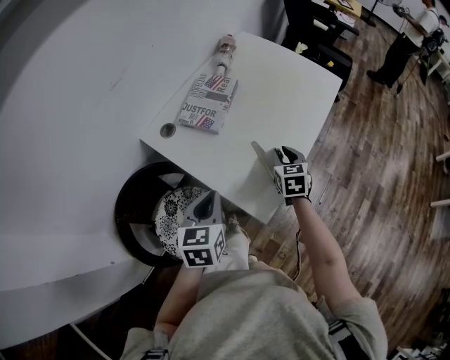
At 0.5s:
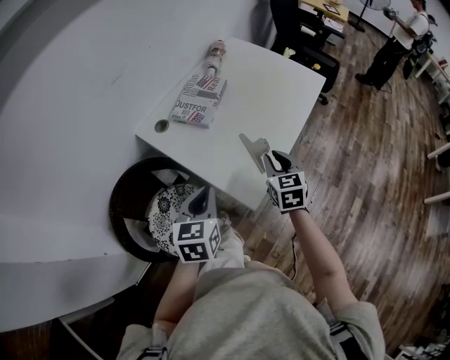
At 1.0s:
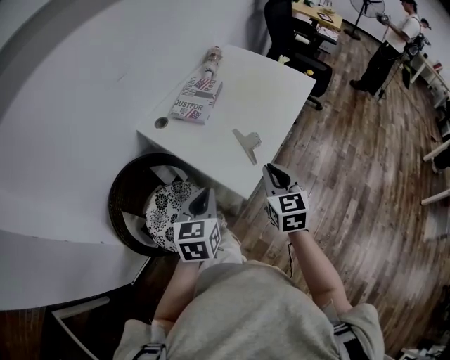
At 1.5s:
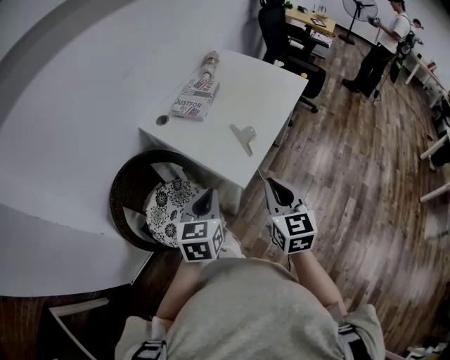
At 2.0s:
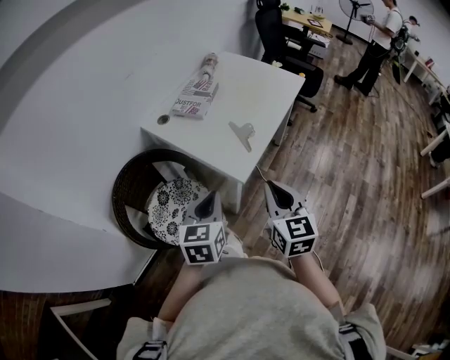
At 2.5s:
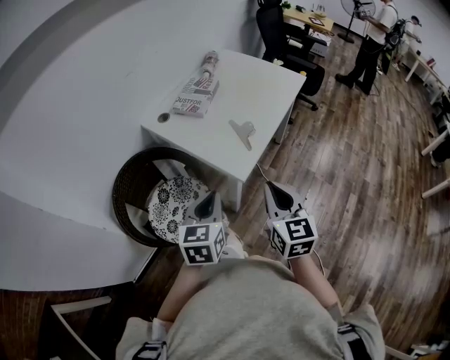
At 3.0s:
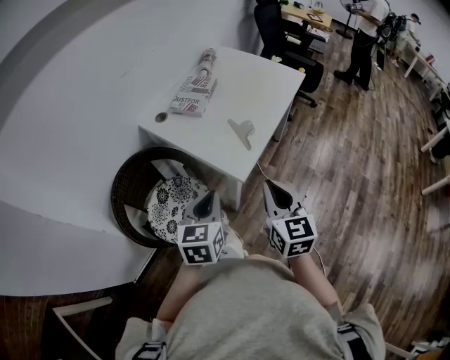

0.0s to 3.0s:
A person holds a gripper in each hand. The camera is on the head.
0.0s to 1.5s: The right gripper is displaced backward and upward by some 35 cm, rotates approximately 20 degrees, and closes; the left gripper goes about 20 cm backward.
1.5s to 3.0s: The grippers move only a little.

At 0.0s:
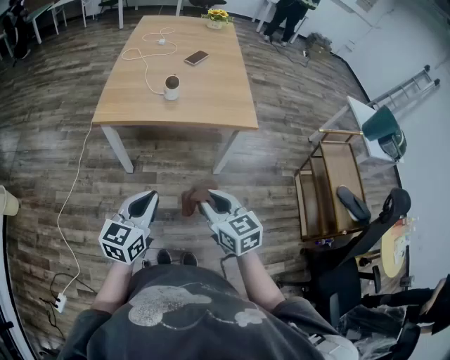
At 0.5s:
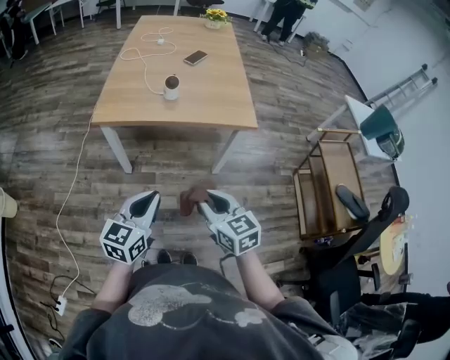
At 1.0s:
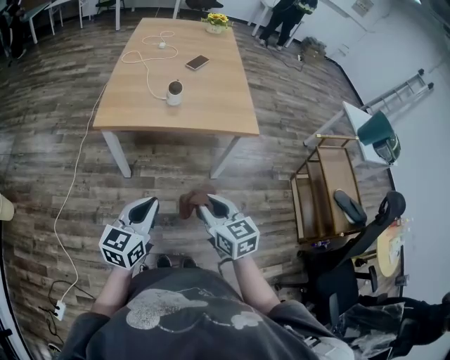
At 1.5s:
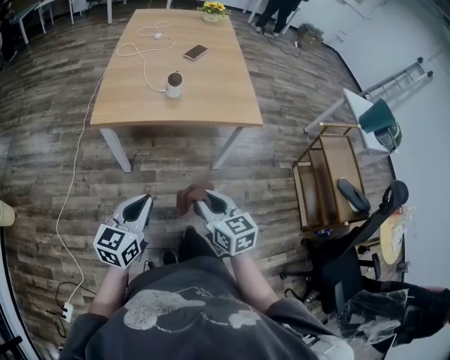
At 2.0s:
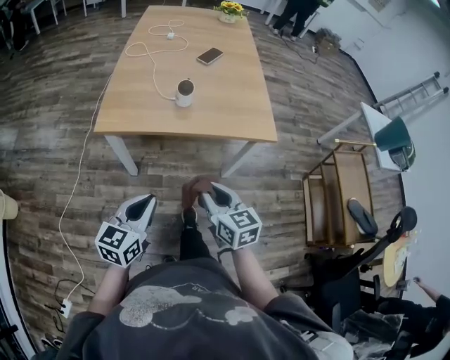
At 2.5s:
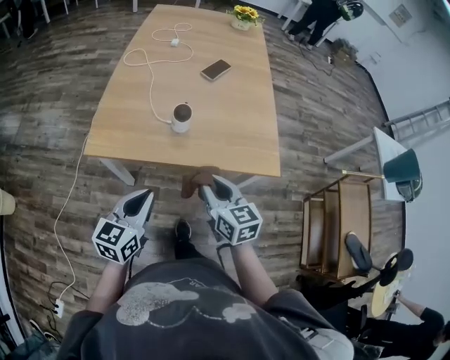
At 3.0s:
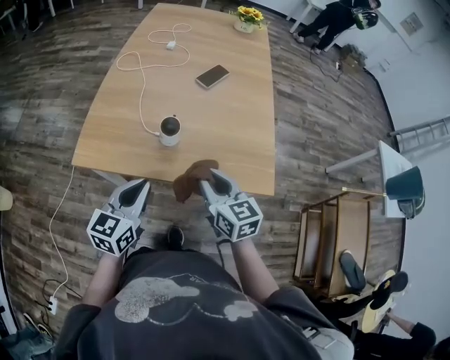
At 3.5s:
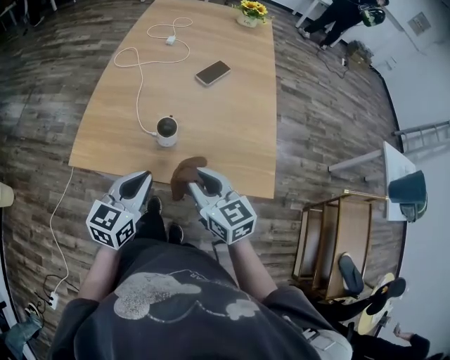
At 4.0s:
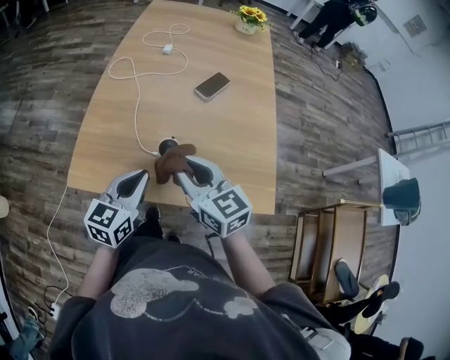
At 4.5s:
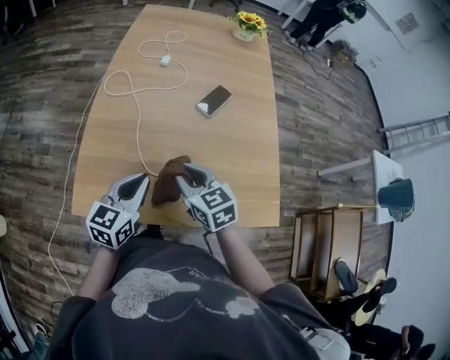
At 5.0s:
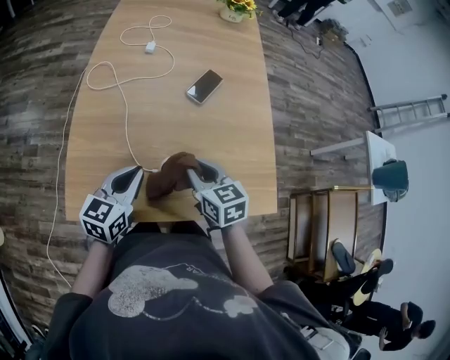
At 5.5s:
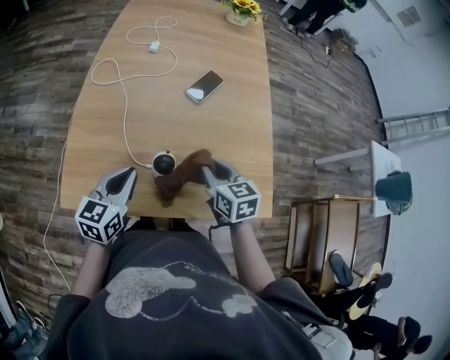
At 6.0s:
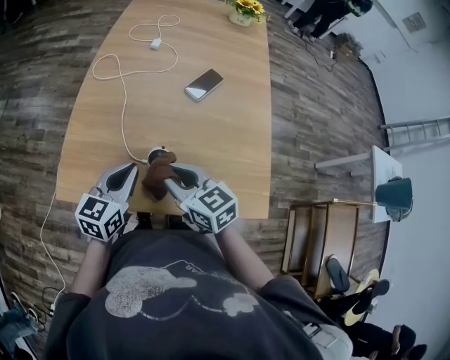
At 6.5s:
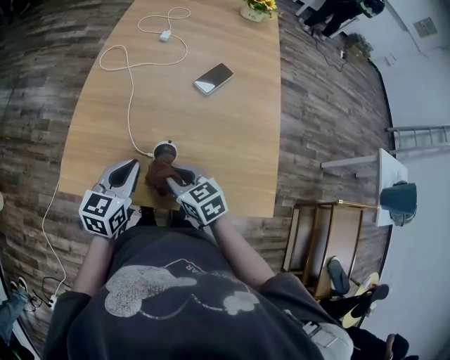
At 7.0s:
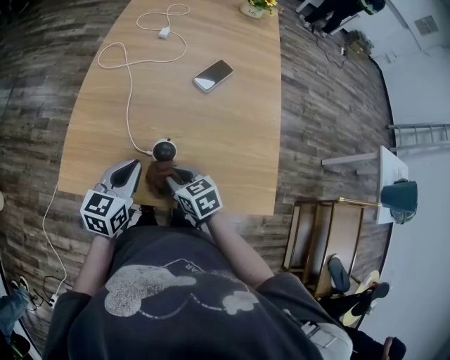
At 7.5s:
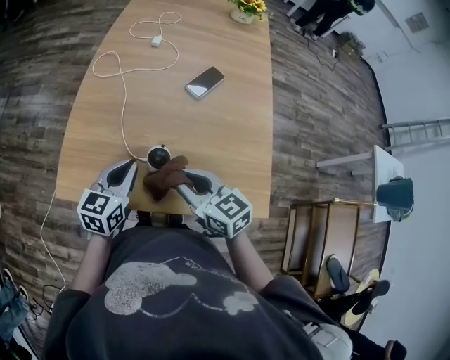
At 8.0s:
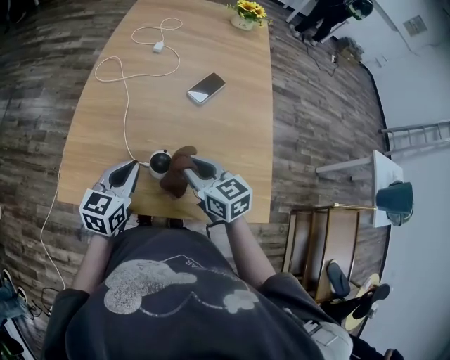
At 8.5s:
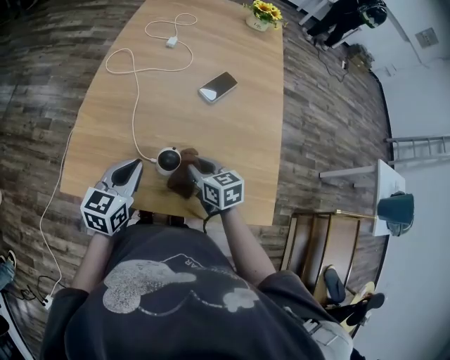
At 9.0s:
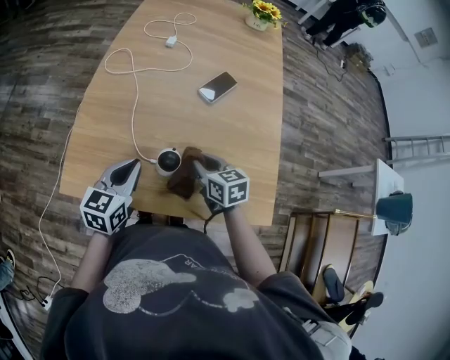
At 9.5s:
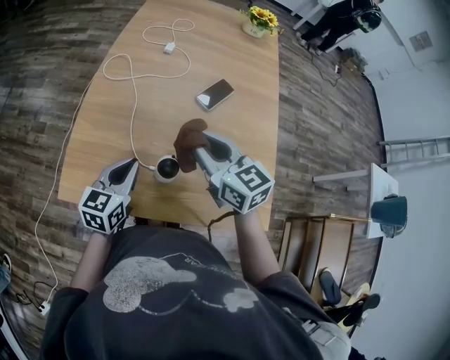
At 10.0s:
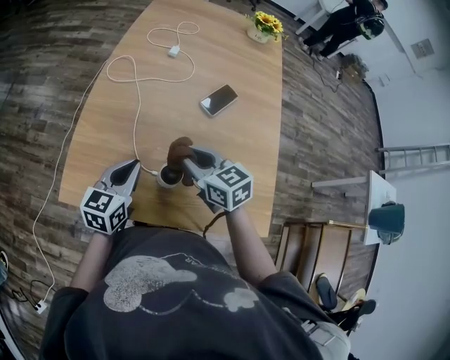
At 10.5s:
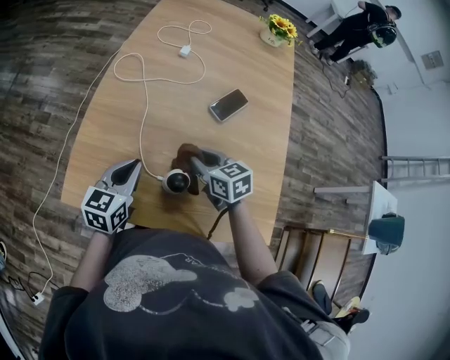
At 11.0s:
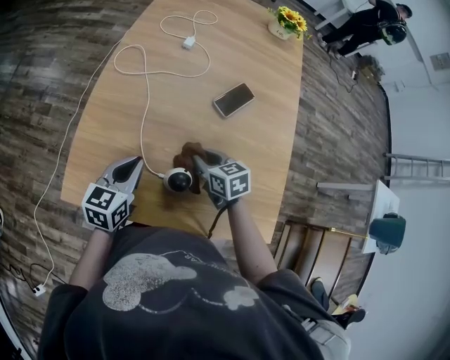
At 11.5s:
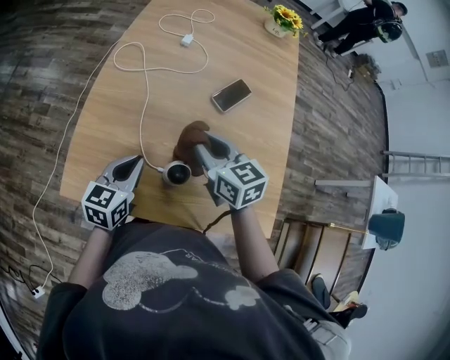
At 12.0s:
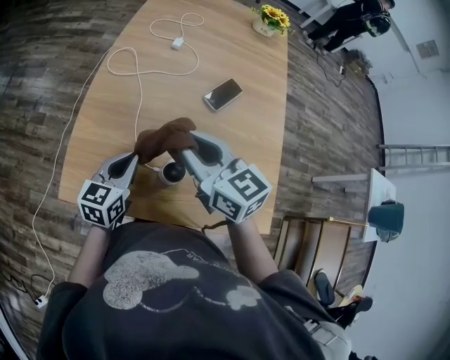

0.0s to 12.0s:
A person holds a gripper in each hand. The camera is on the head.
0.0s to 2.0s: The left gripper is displaced forward and to the left by some 10 cm. Meanwhile the right gripper moves forward, some 10 cm.
2.0s to 4.0s: The grippers both shift forward by about 30 cm. The right gripper turns by some 20 degrees.
4.0s to 6.0s: The right gripper moves downward, some 5 cm, and reaches some 10 cm to the right, then returns. The left gripper heads forward, covering about 5 cm.
6.0s to 8.0s: The right gripper travels to the right by about 5 cm, and reaches approximately 10 cm downward, then returns.
8.0s to 10.0s: The right gripper goes up and down, roughly 15 cm each way, reversing 2 times.
10.0s to 12.0s: The right gripper moves upward, approximately 10 cm.

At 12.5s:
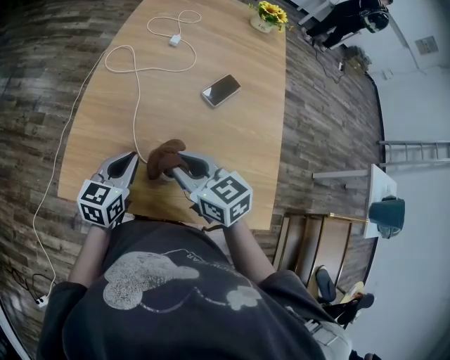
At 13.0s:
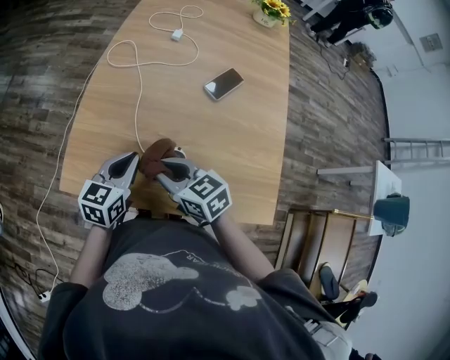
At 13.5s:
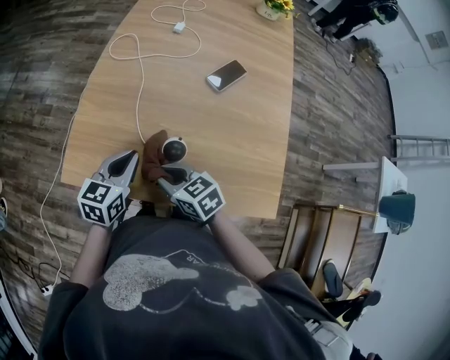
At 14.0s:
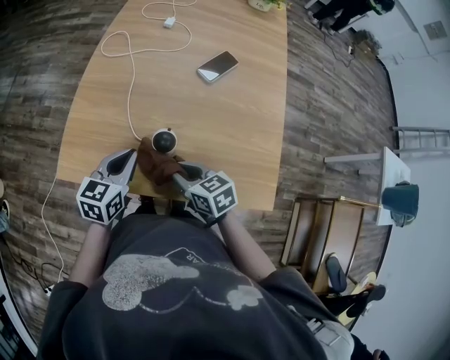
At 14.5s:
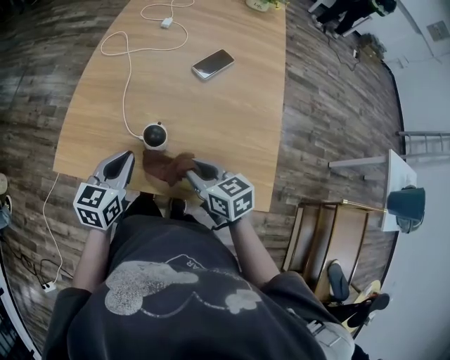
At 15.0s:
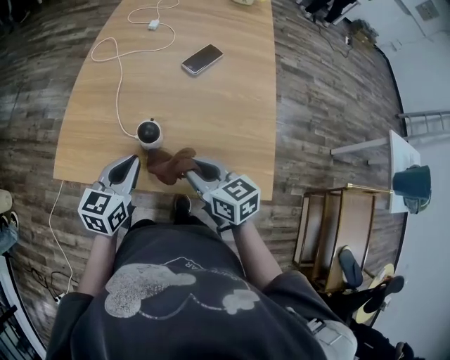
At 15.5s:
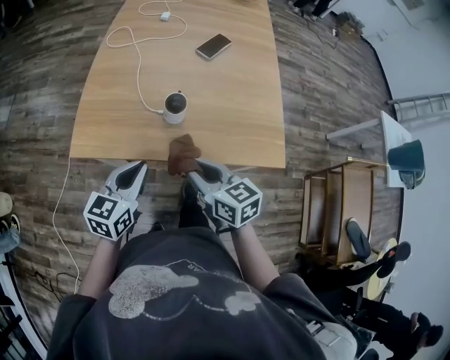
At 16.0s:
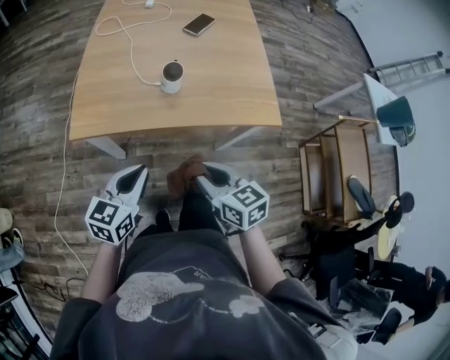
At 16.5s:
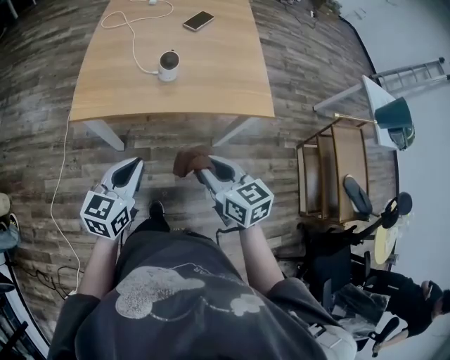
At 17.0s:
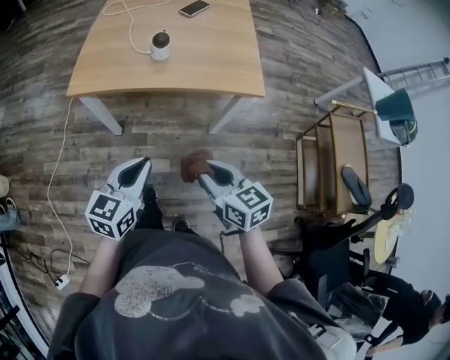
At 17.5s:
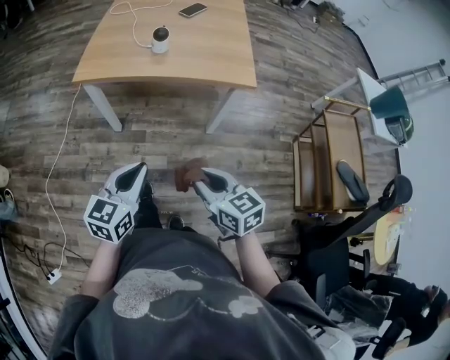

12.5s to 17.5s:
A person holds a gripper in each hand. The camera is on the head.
12.5s to 15.0s: The right gripper heads backward, to the right and downward, covering some 15 cm, while the left gripper travels backward by about 10 cm.
15.0s to 17.5s: The pair of grippers is taken backward, roughly 40 cm.

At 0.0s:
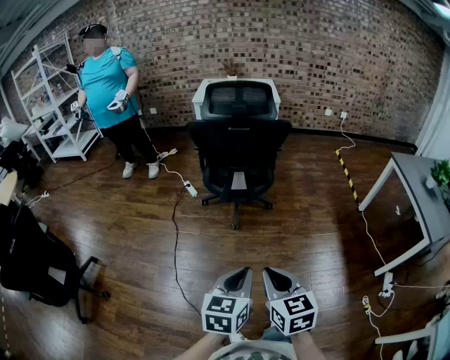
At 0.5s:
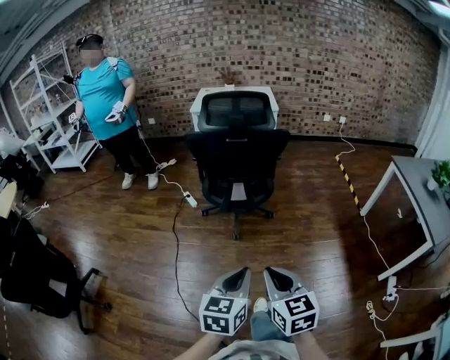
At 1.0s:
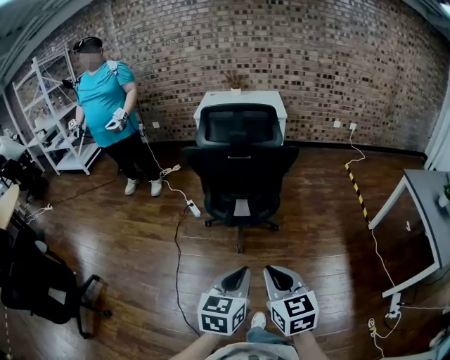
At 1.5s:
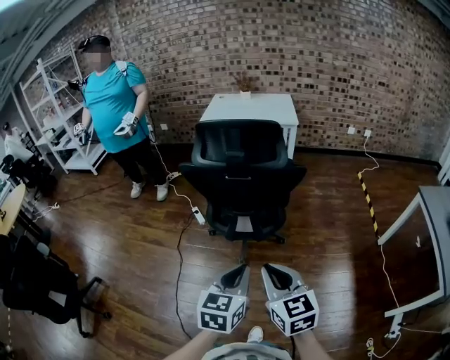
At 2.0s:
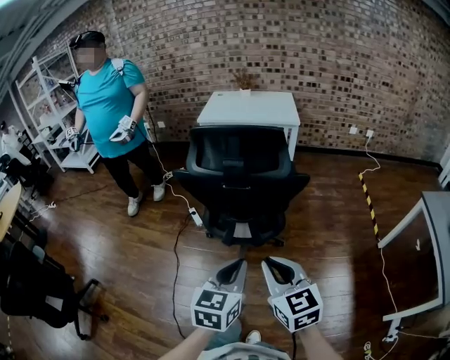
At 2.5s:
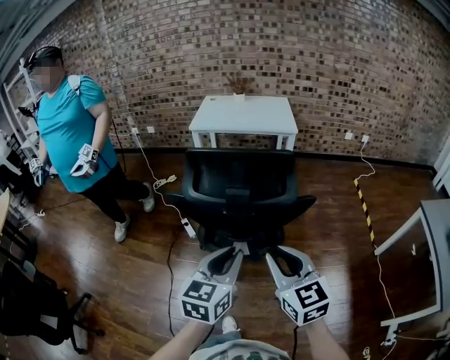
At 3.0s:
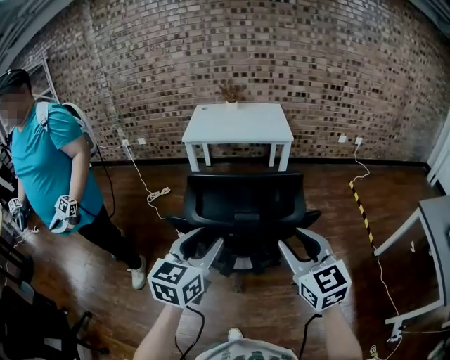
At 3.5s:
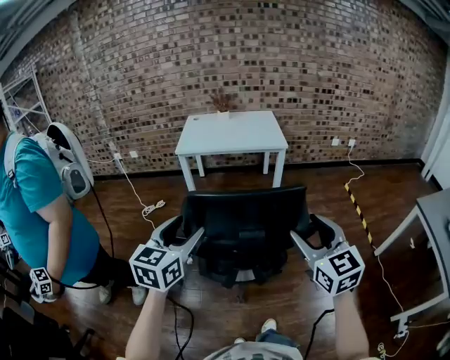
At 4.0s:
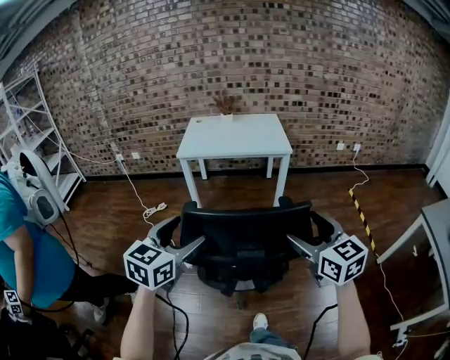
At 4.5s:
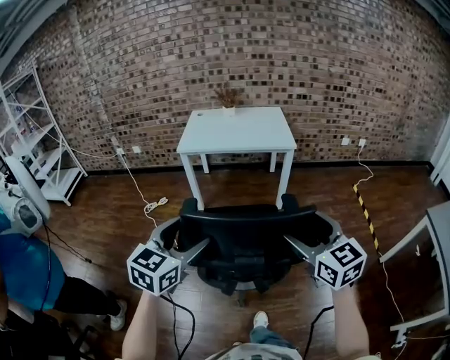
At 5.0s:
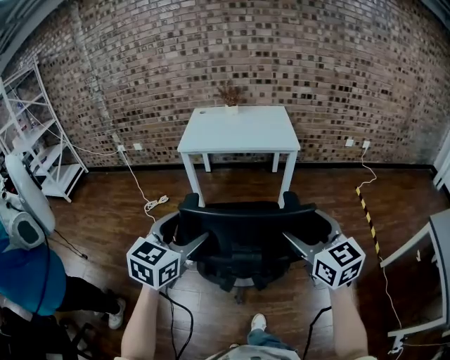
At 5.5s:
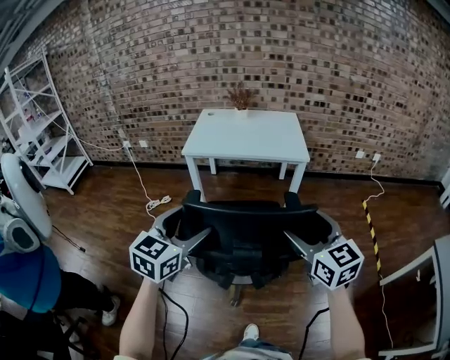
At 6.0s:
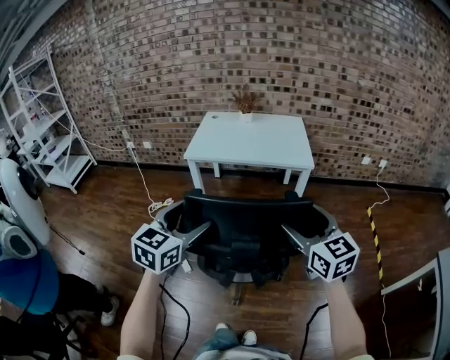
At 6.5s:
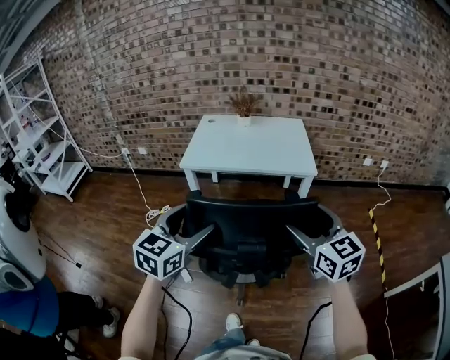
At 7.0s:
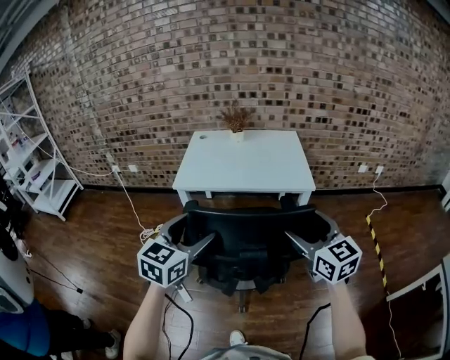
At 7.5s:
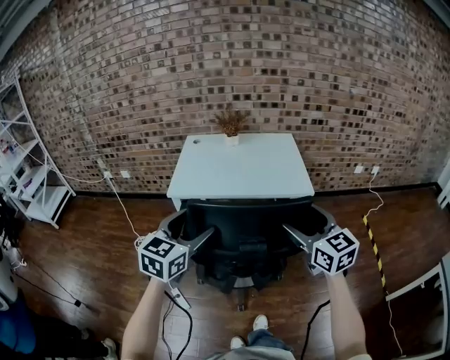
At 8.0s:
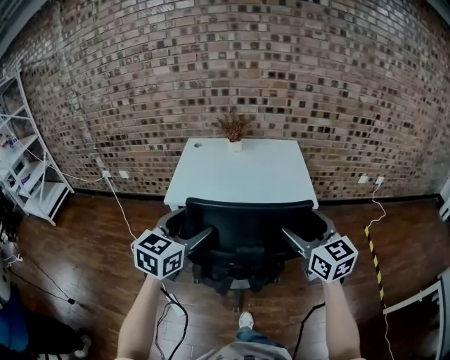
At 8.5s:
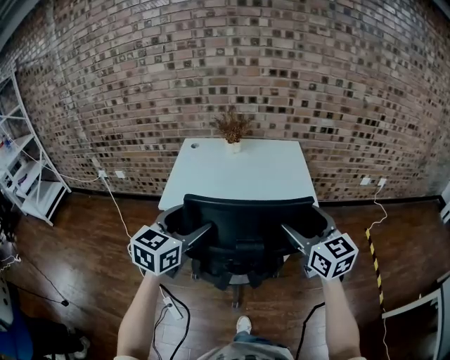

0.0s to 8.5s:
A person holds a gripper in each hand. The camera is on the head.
0.0s to 2.0s: The two grippers go about 35 cm forward.
2.0s to 4.0s: The left gripper shifts some 35 cm forward and to the left, and opens up, while the right gripper travels forward by roughly 30 cm, and opens its fingers.
4.0s to 6.5s: Both grippers move forward, about 25 cm.
6.5s to 8.5s: The grippers both shift forward by about 25 cm.
